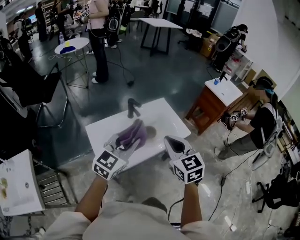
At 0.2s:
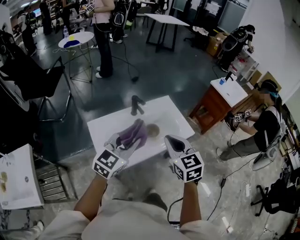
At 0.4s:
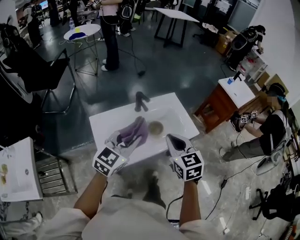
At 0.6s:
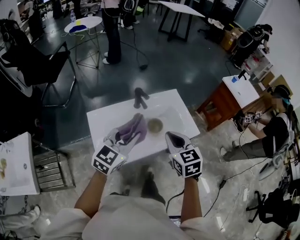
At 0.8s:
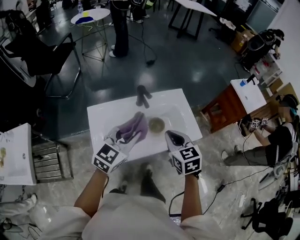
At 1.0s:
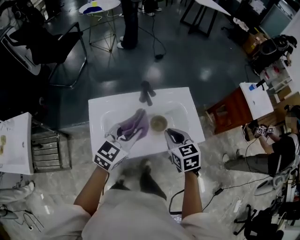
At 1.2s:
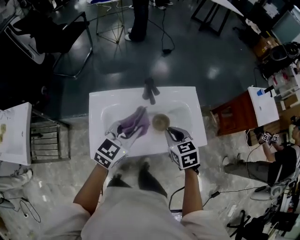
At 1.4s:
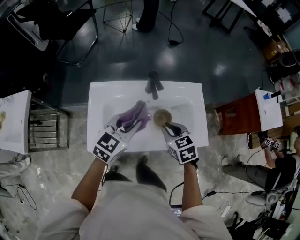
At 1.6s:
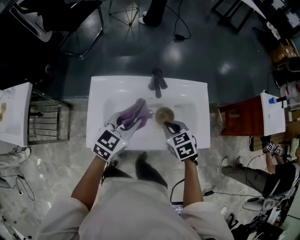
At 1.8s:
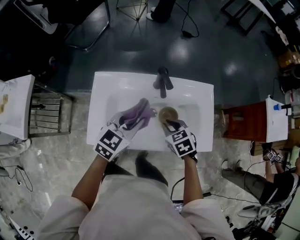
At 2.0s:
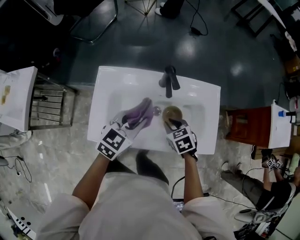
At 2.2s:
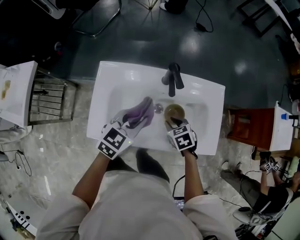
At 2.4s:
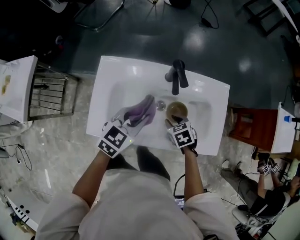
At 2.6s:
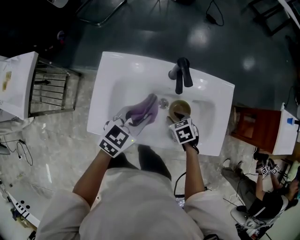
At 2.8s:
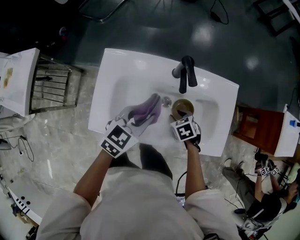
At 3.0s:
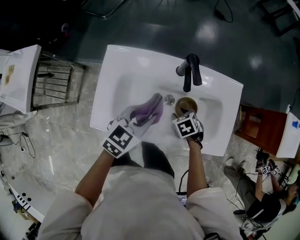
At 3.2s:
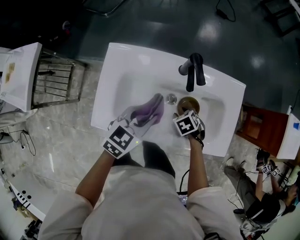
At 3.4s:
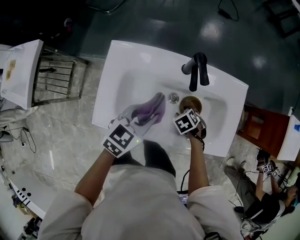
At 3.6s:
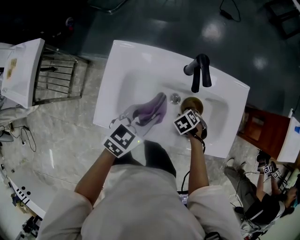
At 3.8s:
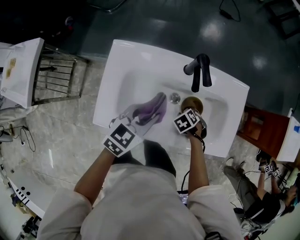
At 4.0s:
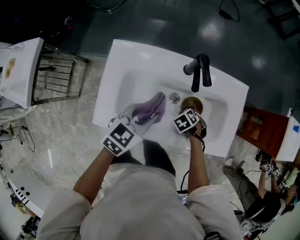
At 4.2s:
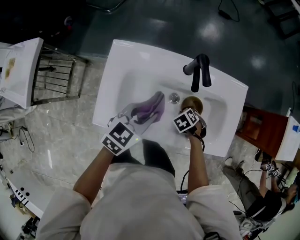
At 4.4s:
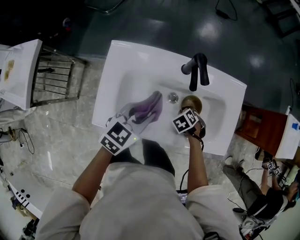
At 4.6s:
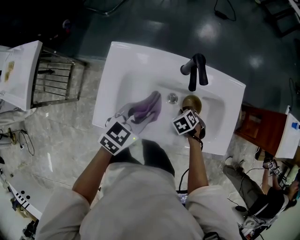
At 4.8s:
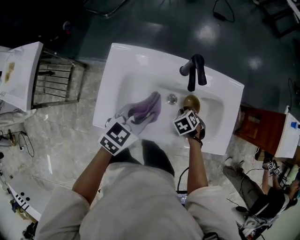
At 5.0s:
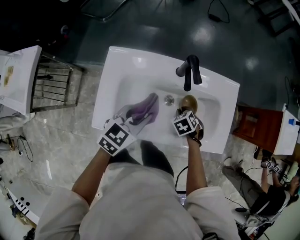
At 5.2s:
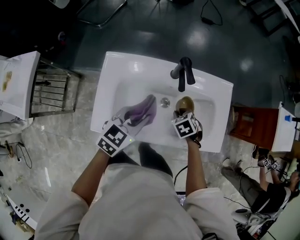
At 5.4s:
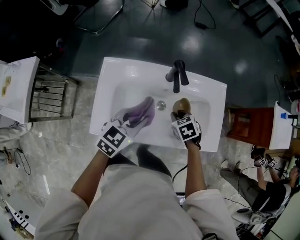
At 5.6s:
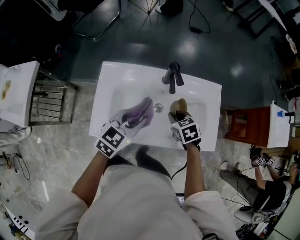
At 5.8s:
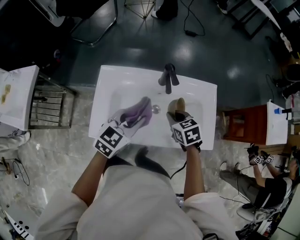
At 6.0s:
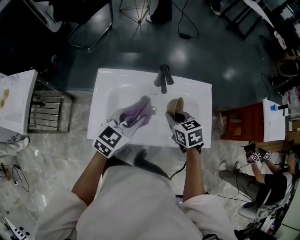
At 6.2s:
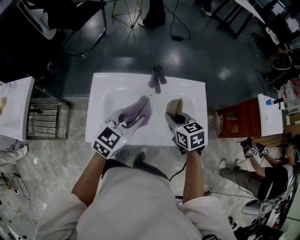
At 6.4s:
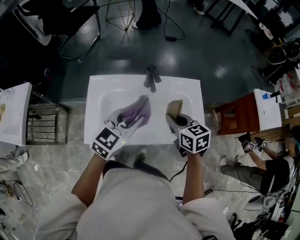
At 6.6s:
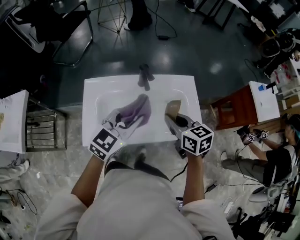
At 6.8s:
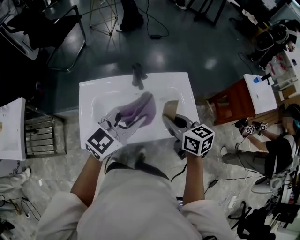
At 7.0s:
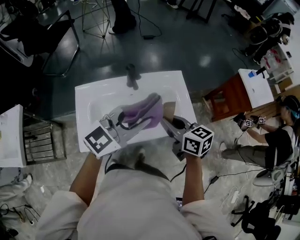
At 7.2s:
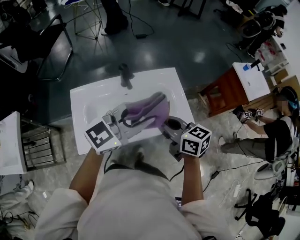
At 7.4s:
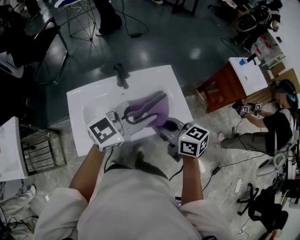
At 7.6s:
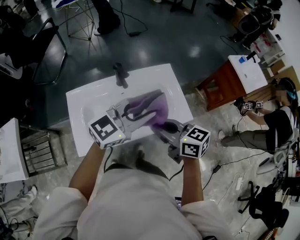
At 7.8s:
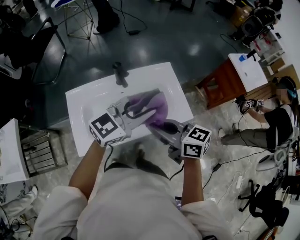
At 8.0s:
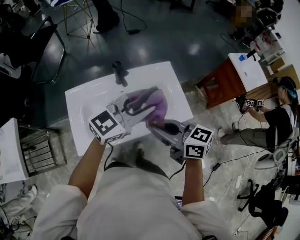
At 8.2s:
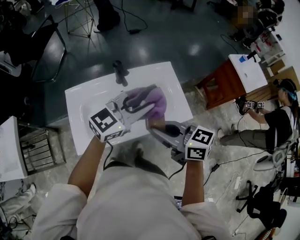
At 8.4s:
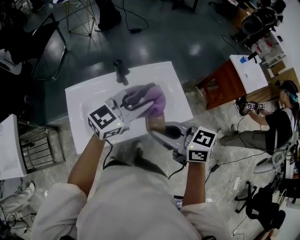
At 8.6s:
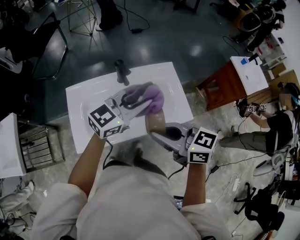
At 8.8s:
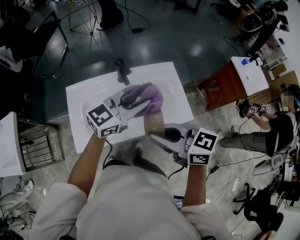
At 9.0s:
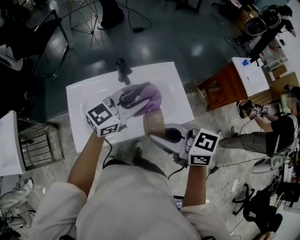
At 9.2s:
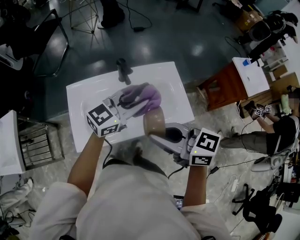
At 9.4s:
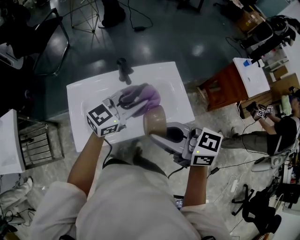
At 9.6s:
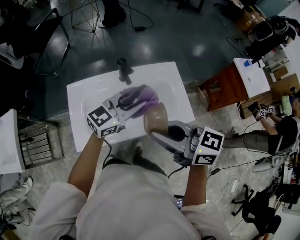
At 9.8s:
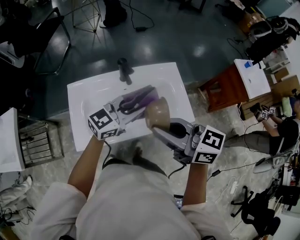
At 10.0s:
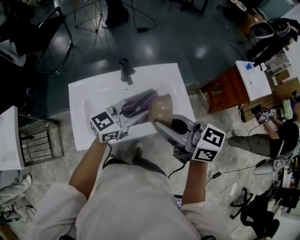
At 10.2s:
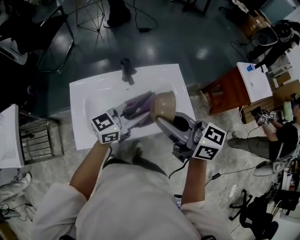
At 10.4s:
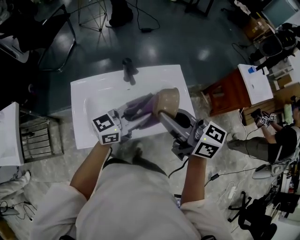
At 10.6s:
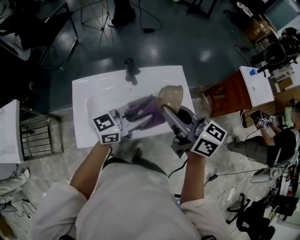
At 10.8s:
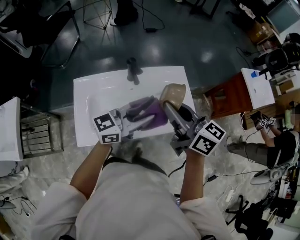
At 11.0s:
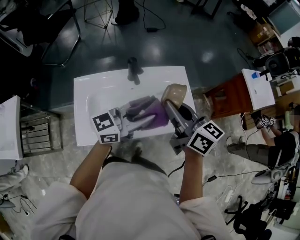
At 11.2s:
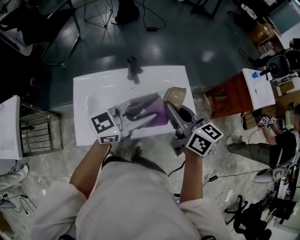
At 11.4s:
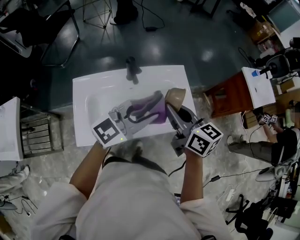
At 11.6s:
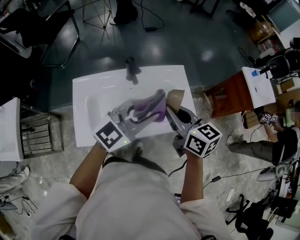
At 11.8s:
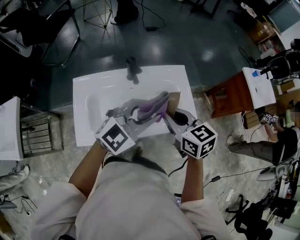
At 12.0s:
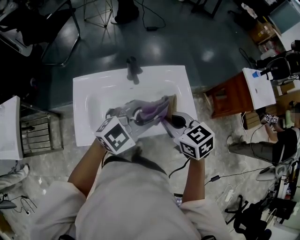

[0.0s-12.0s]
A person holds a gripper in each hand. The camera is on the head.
0.0s to 1.6s: The grippers both shift downward by some 25 cm. The right gripper points its fingers roughly 30 degrees further downward; the left gripper changes its angle by about 30 degrees.
1.6s to 3.0s: The right gripper moves downward, approximately 20 cm, swivels roughly 30 degrees, and opens; the left gripper is displaced downward by approximately 10 cm.
3.0s to 4.4s: The right gripper closes up.
4.4s to 6.0s: The right gripper is displaced upward by some 25 cm, and points its fingers approximately 40 degrees further upward. The left gripper shifts roughly 10 cm upward.
6.0s to 7.6s: The left gripper goes about 20 cm to the right and upward, and swivels some 40 degrees; the right gripper is displaced backward, upward and to the right by about 20 cm, and rotates approximately 30 degrees.
7.6s to 9.0s: The left gripper moves about 5 cm. The right gripper is displaced upward by roughly 5 cm.
9.0s to 10.4s: The right gripper changes place by approximately 10 cm.
10.4s to 12.0s: The right gripper shifts about 10 cm downward, and angles its fingers downward, by about 30 degrees. The left gripper swivels some 40 degrees.

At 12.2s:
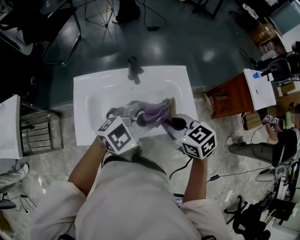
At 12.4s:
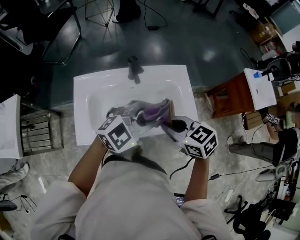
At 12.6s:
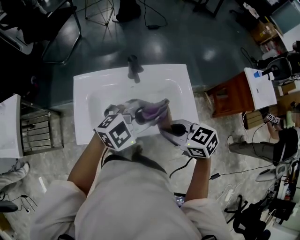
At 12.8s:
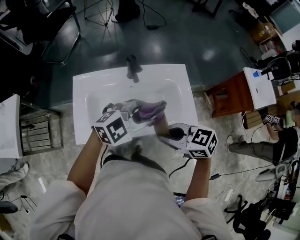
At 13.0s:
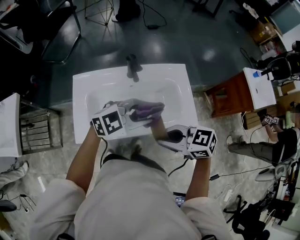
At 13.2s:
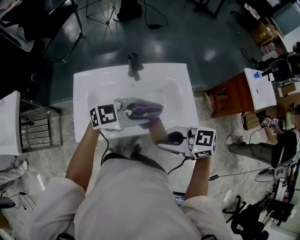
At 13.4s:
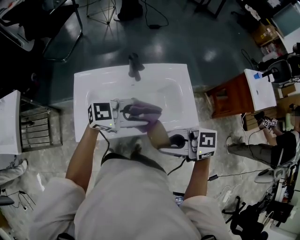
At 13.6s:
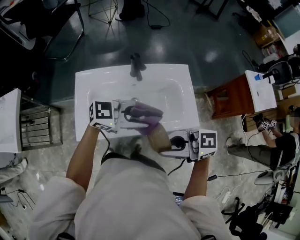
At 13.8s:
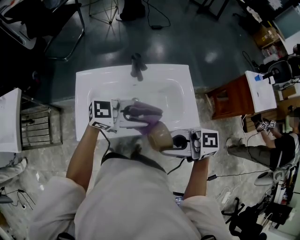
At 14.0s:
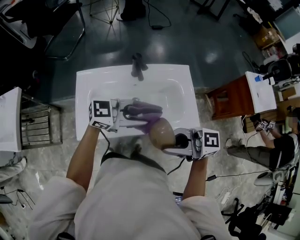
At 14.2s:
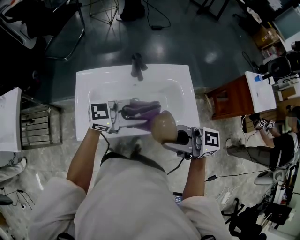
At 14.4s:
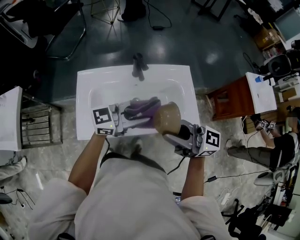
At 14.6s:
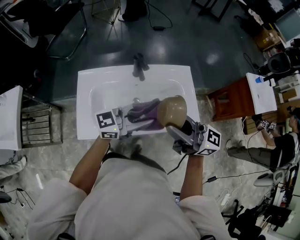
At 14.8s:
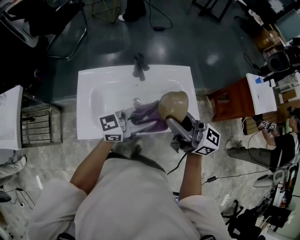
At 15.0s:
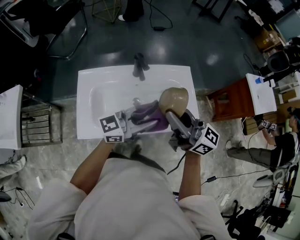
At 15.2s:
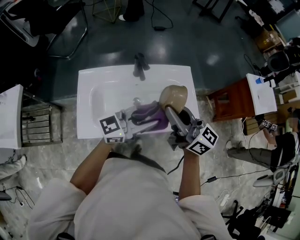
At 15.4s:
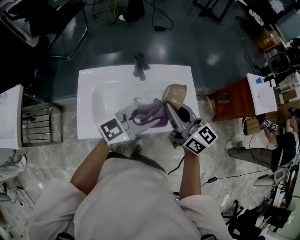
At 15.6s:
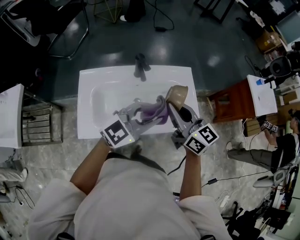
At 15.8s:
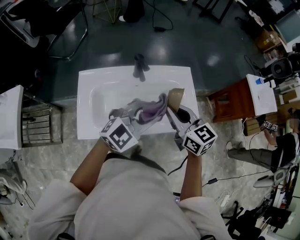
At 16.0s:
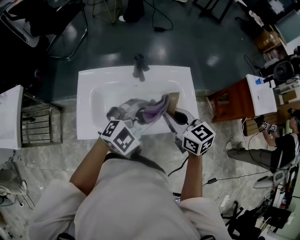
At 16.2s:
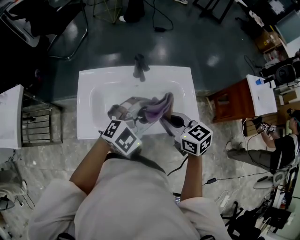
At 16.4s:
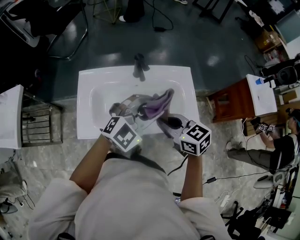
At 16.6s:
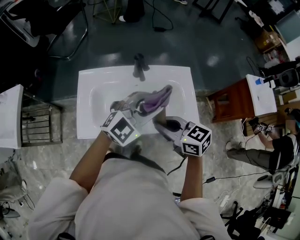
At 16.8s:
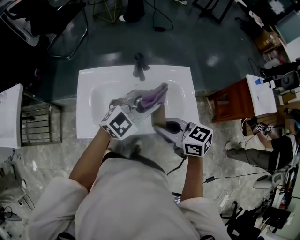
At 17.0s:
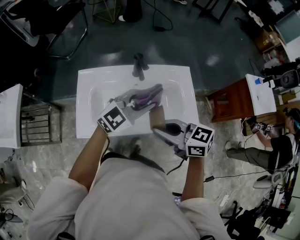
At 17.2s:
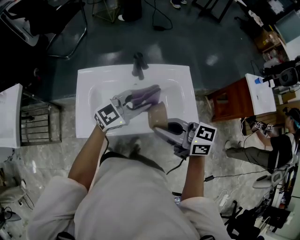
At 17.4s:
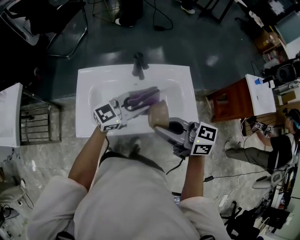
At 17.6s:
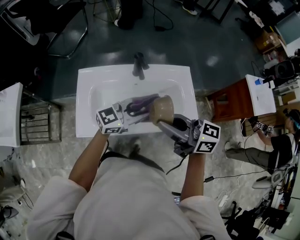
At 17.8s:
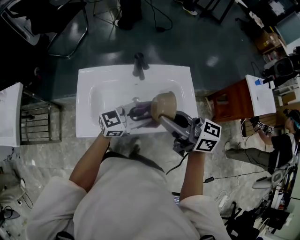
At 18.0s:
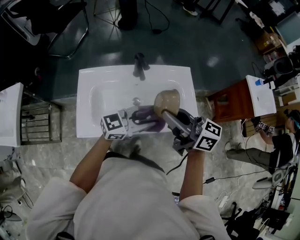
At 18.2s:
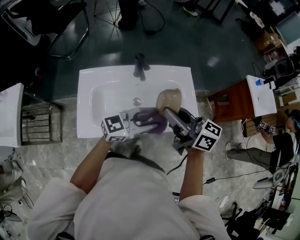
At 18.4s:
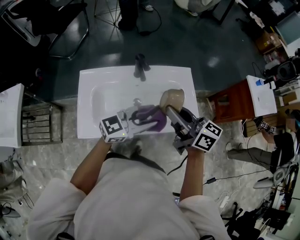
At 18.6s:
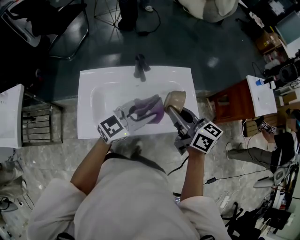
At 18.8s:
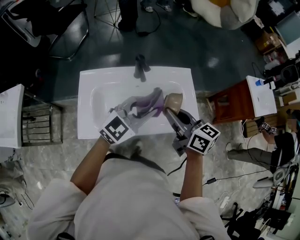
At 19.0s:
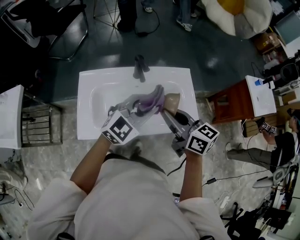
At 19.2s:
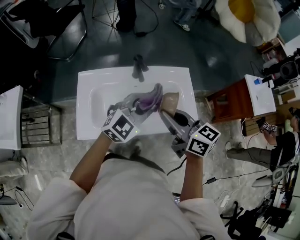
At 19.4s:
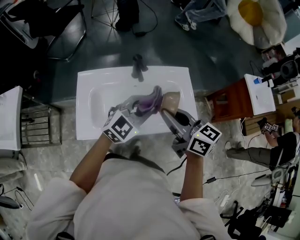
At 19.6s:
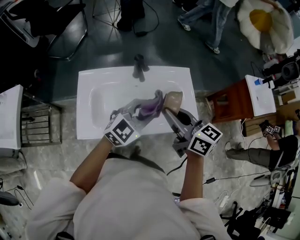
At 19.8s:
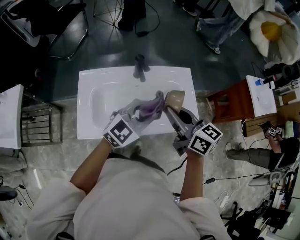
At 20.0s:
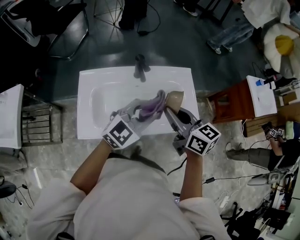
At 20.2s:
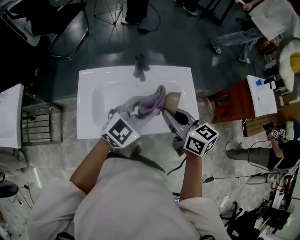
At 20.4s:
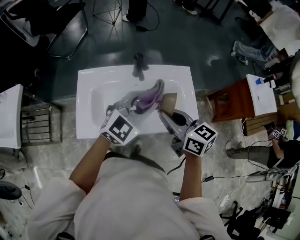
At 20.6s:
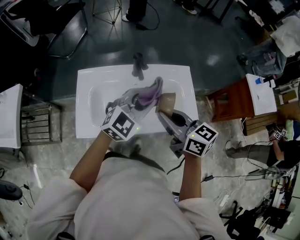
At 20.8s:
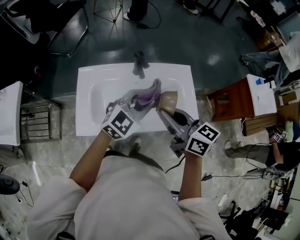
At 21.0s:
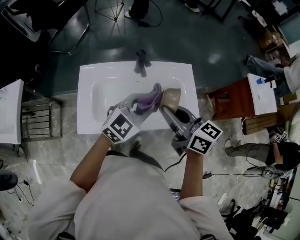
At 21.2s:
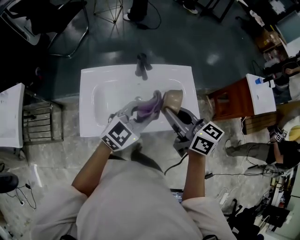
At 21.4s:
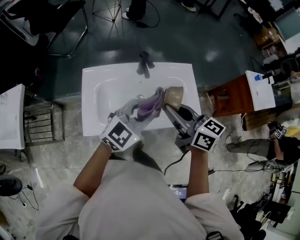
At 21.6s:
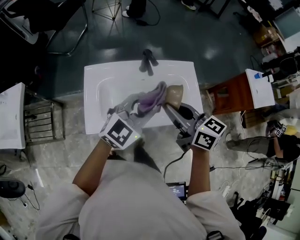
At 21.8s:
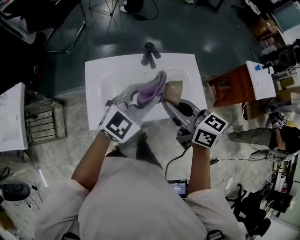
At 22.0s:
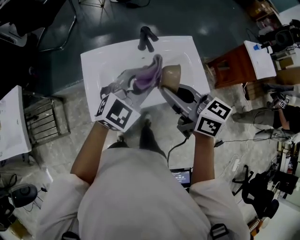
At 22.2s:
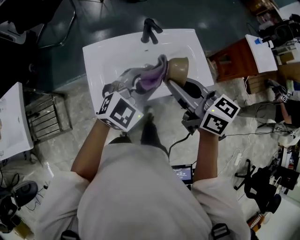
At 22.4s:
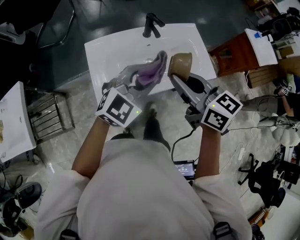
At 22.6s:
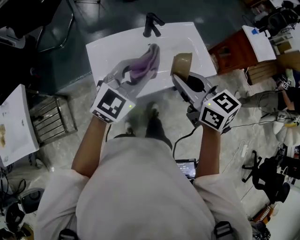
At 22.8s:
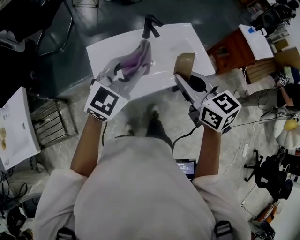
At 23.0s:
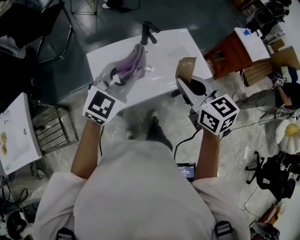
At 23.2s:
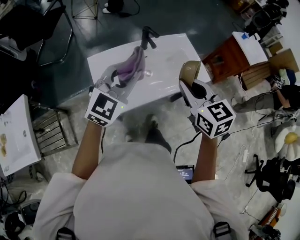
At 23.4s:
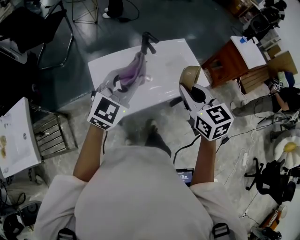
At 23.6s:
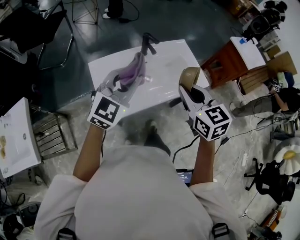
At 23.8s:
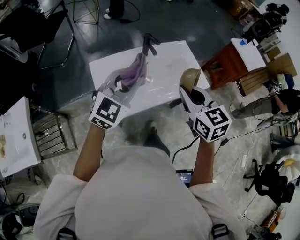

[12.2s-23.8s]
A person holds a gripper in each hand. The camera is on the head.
12.2s to 13.6s: The left gripper moves some 5 cm, and rotates approximately 40 degrees. The right gripper shifts by roughly 15 cm, and tips its fingers upward by roughly 30 degrees.
13.6s to 15.0s: The right gripper changes place by some 15 cm, and turns by some 40 degrees; the left gripper rotates some 30 degrees.
15.0s to 16.6s: The right gripper shifts roughly 10 cm downward, and tips its fingers downward by roughly 40 degrees; the left gripper rolls clockwise, seen from behind, by about 40 degrees.
16.6s to 18.0s: The left gripper travels downward by approximately 5 cm, and turns by some 40 degrees; the right gripper shifts some 10 cm upward, and turns by approximately 30 degrees.
18.0s to 19.4s: The left gripper changes place by about 5 cm, and changes its angle by about 30 degrees.
19.4s to 21.0s: The grippers stay close to where they were, moving slightly.
21.0s to 22.4s: The grippers both shift to the left and backward by about 15 cm.
22.4s to 23.8s: The right gripper swivels roughly 30 degrees, while the left gripper heads to the left, covering approximately 5 cm.
